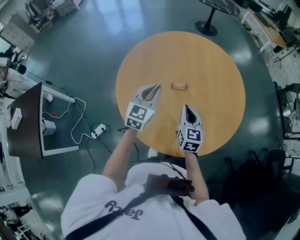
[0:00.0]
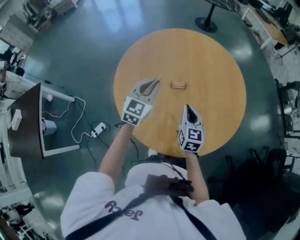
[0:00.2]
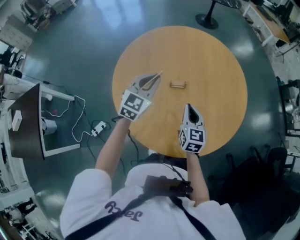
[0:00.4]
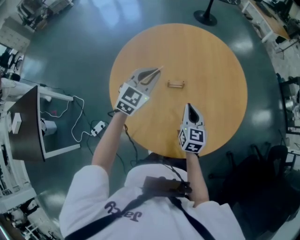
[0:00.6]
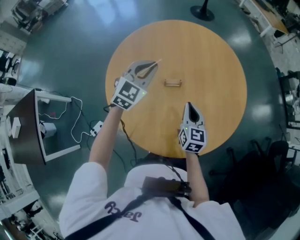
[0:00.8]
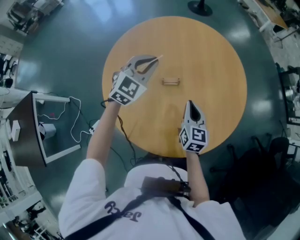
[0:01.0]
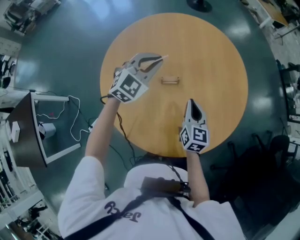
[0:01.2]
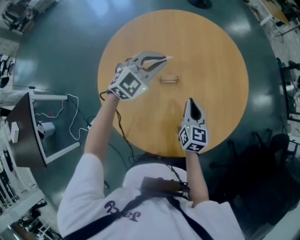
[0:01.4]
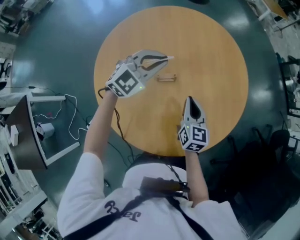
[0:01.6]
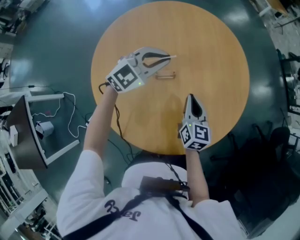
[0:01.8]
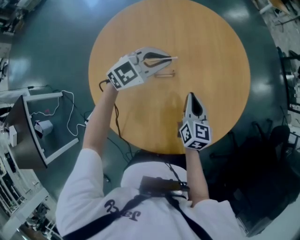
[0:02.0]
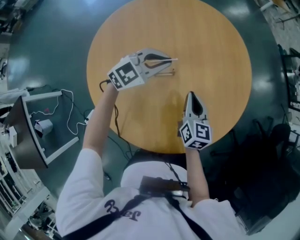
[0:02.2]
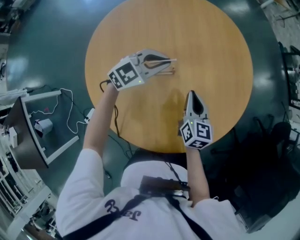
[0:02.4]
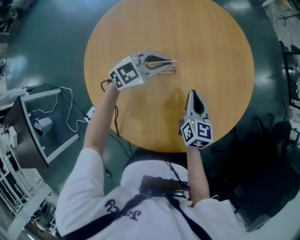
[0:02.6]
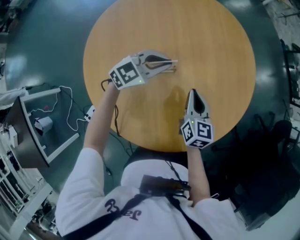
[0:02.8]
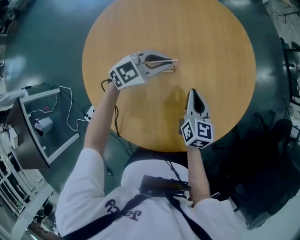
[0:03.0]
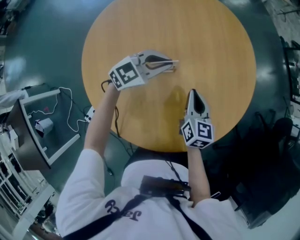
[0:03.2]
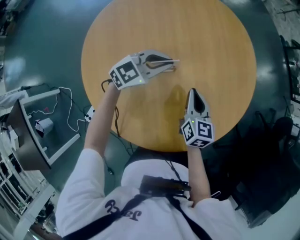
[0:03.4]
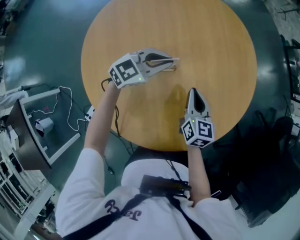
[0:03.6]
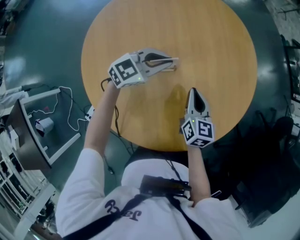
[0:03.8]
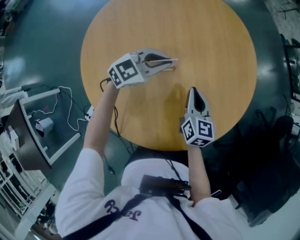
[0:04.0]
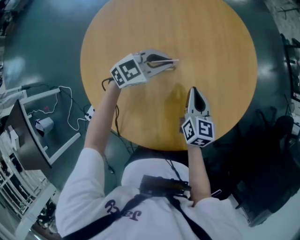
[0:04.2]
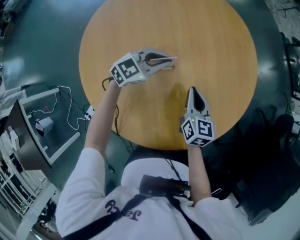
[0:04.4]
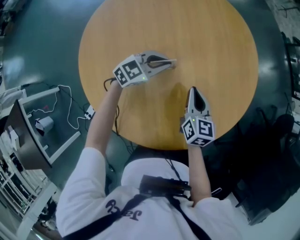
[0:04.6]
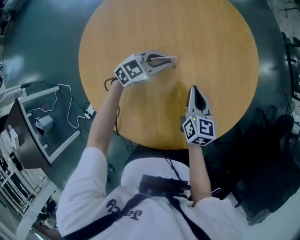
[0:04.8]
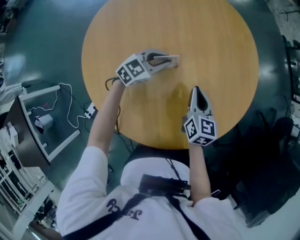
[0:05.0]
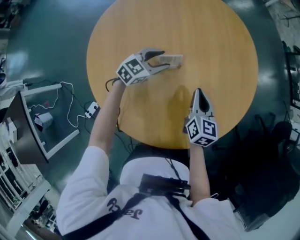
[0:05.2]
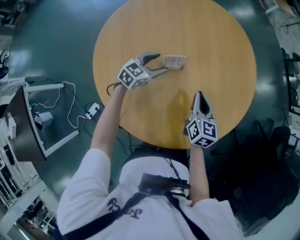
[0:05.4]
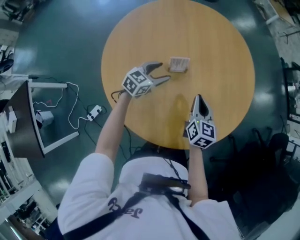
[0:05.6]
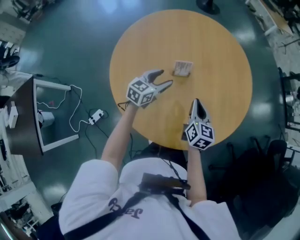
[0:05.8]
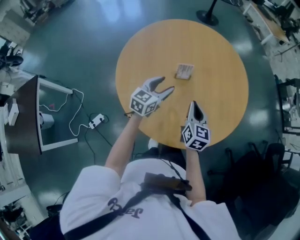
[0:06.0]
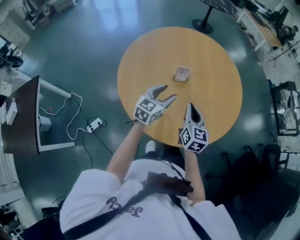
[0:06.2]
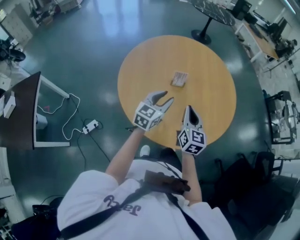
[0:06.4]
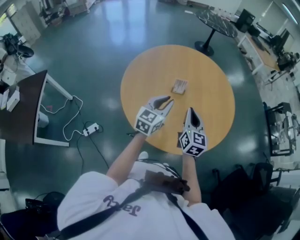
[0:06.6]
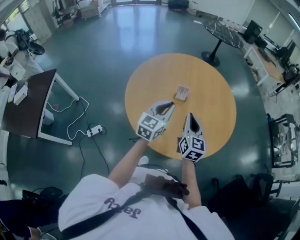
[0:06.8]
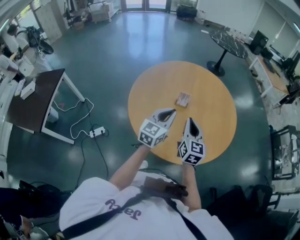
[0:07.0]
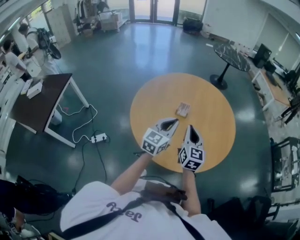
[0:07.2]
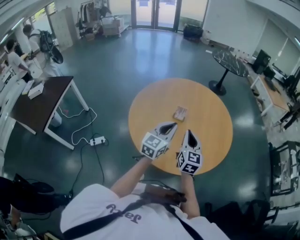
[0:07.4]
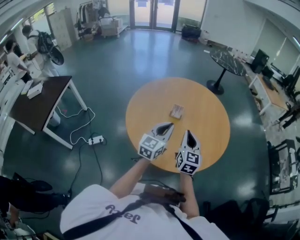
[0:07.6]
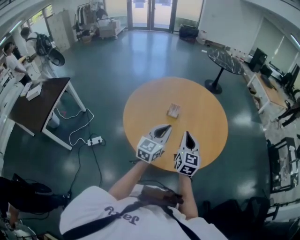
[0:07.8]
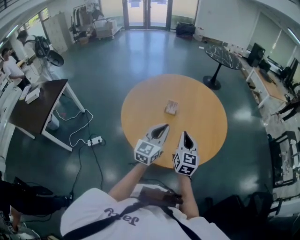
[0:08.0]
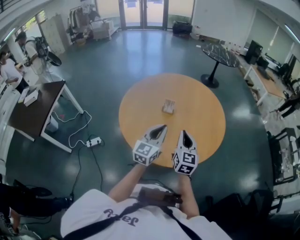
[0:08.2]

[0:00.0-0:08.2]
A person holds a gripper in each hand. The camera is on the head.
0:00.0 to 0:01.6: The right gripper goes approximately 10 cm forward and to the right. Meanwhile the left gripper goes some 15 cm forward and to the right, and rotates roughly 40 degrees.
0:01.6 to 0:03.2: The left gripper is displaced downward by some 10 cm, and turns by approximately 30 degrees.
0:03.2 to 0:05.0: The left gripper travels downward by some 10 cm.
0:05.0 to 0:06.6: The right gripper is displaced upward and backward by roughly 20 cm, and rotates some 30 degrees. The left gripper is displaced backward and upward by roughly 30 cm, changes its angle by about 50 degrees, and opens, then closes again.
0:06.6 to 0:08.2: The right gripper goes some 10 cm to the right and backward; the left gripper is displaced backward and to the right by roughly 15 cm.

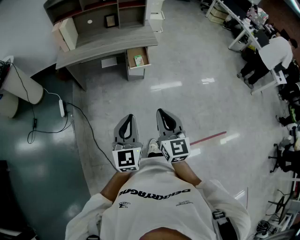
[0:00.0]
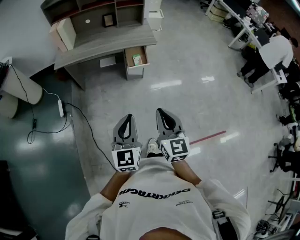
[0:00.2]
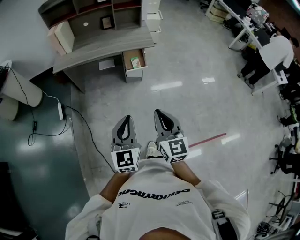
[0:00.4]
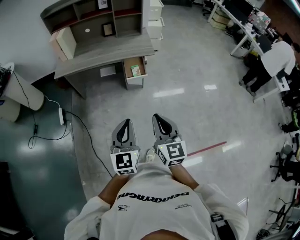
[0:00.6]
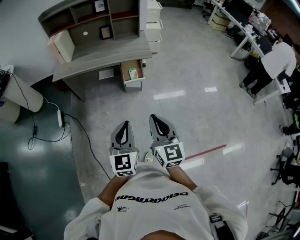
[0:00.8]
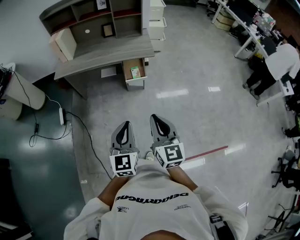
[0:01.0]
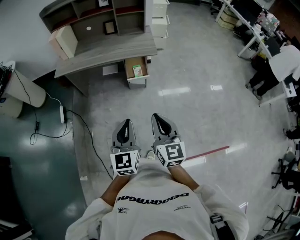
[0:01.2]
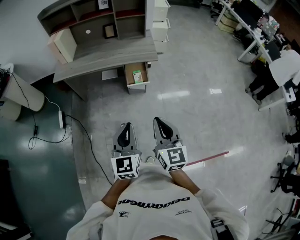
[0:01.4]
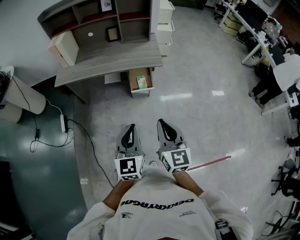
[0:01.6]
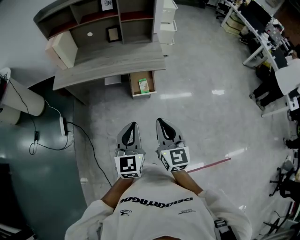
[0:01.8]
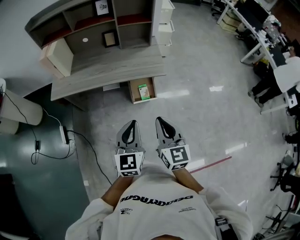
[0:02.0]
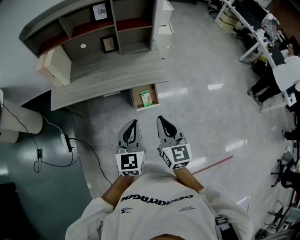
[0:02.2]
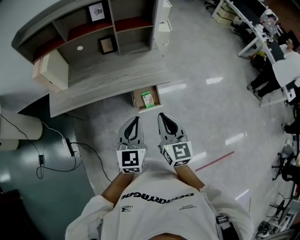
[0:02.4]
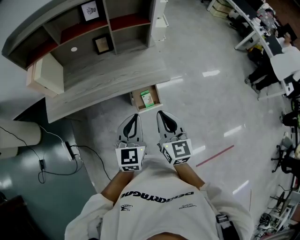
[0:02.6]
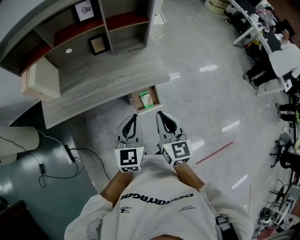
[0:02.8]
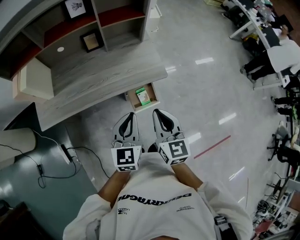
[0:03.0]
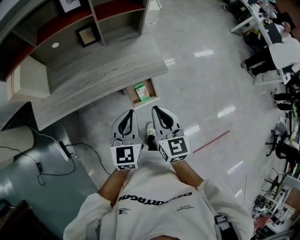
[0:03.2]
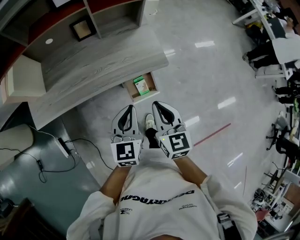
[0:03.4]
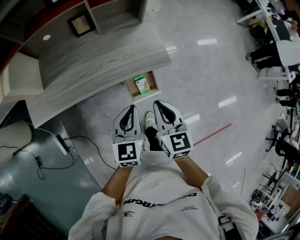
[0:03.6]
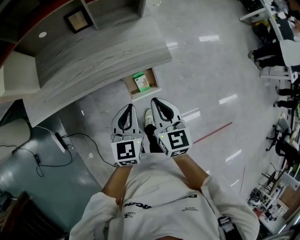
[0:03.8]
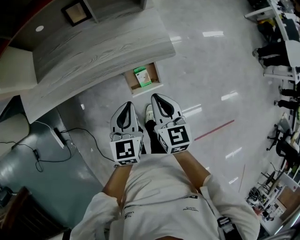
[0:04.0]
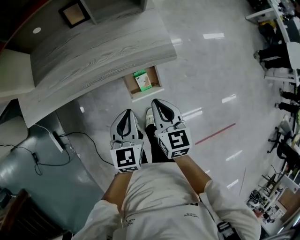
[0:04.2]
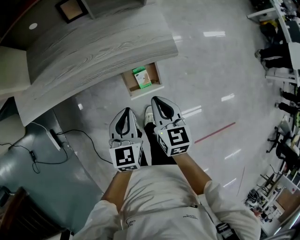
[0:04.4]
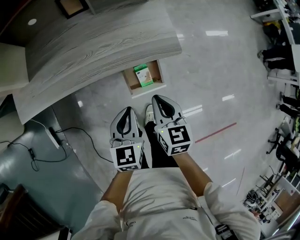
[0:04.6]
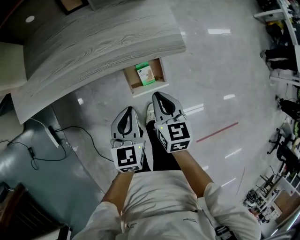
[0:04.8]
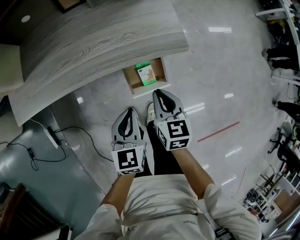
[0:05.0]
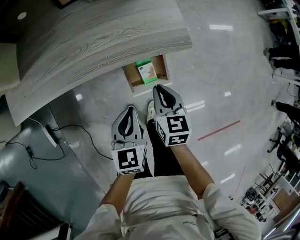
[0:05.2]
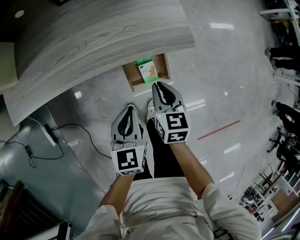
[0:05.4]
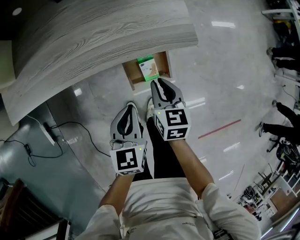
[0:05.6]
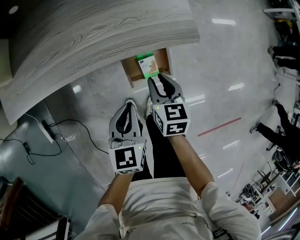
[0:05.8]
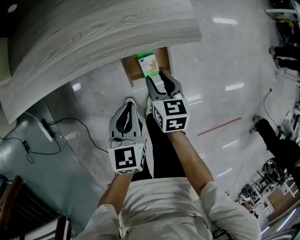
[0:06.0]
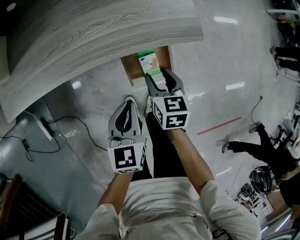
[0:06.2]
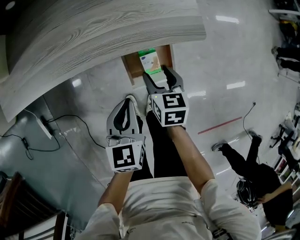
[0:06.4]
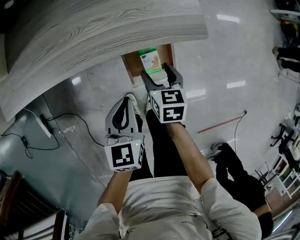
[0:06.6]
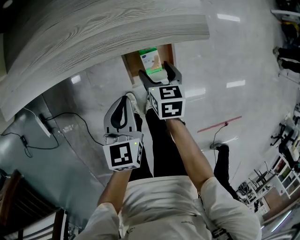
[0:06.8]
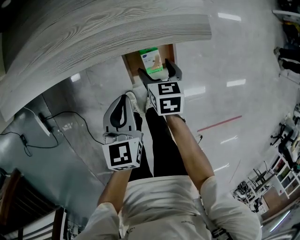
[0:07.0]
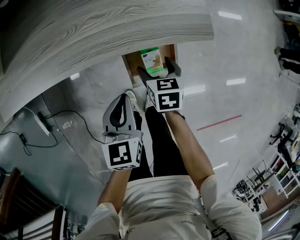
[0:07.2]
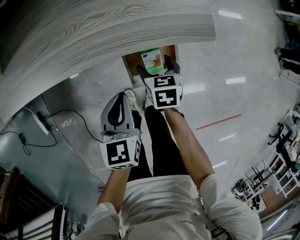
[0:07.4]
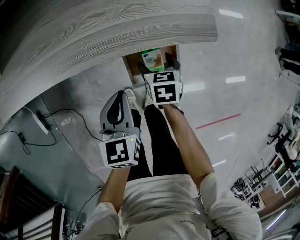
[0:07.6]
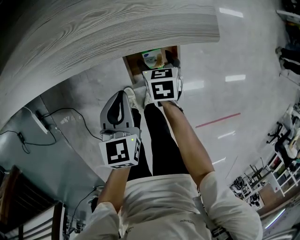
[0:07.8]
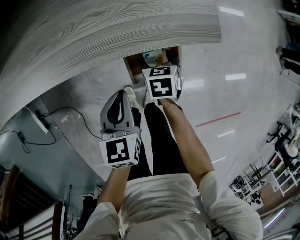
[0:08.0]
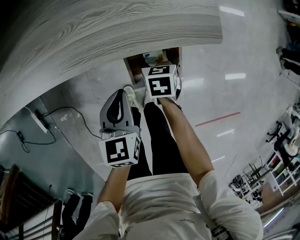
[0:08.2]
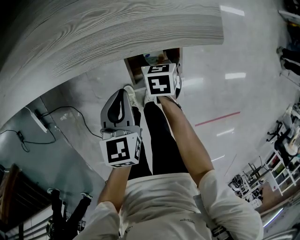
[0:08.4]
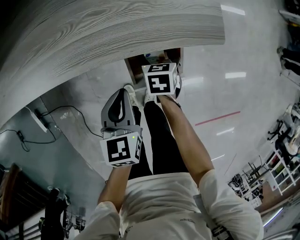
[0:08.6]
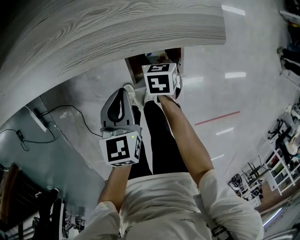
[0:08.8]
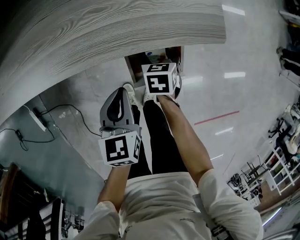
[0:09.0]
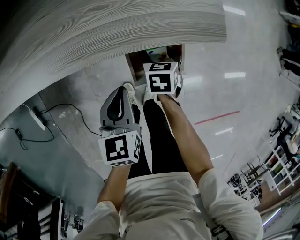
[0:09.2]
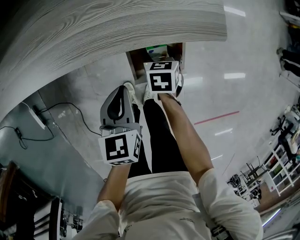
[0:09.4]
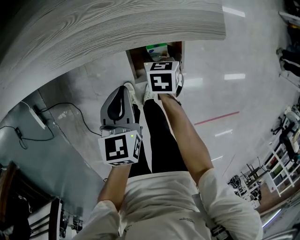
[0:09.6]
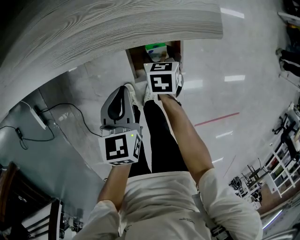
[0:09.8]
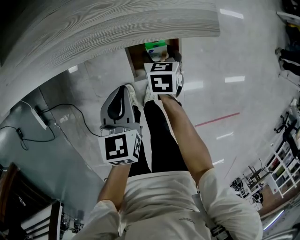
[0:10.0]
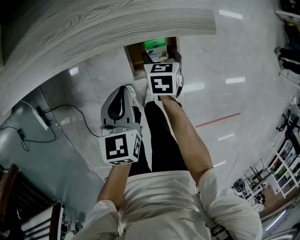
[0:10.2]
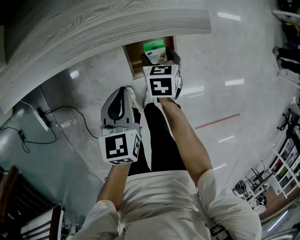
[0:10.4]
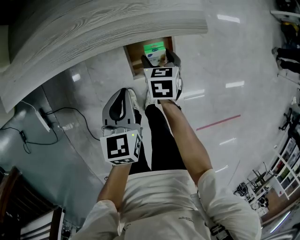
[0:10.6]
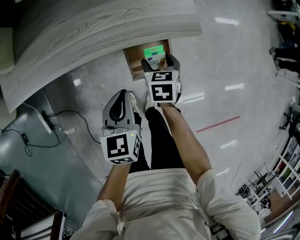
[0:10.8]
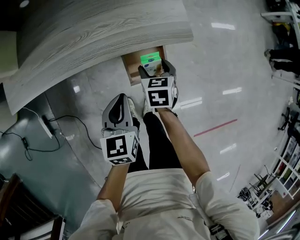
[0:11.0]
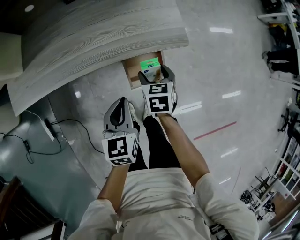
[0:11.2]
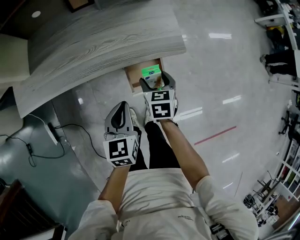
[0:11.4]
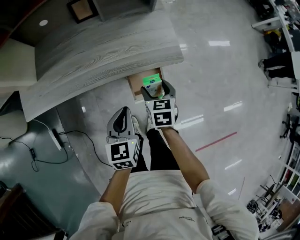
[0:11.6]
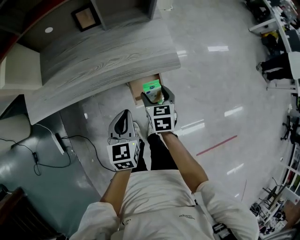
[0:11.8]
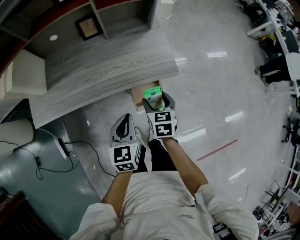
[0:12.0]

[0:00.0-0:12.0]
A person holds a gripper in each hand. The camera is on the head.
0:00.0 to 0:01.6: The two grippers go about 20 cm forward and to the right.
0:01.6 to 0:03.0: The two grippers go approximately 35 cm forward.
0:03.0 to 0:04.4: The grippers both shift downward by roughly 20 cm.
0:04.4 to 0:06.0: The left gripper travels downward by approximately 10 cm, while the right gripper is displaced downward by about 20 cm, and opens its fingers.
0:06.0 to 0:07.6: The right gripper heads downward, covering approximately 10 cm, and opens its fingers, while the left gripper shifts by approximately 5 cm.
0:07.6 to 0:09.0: The grippers stay close to where they were, moving slightly.
0:09.0 to 0:10.4: Both grippers move upward, roughly 5 cm.
0:10.4 to 0:12.0: Both grippers move upward, some 20 cm.

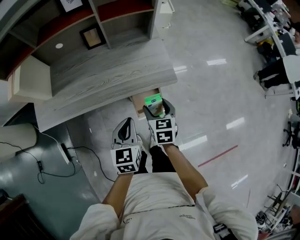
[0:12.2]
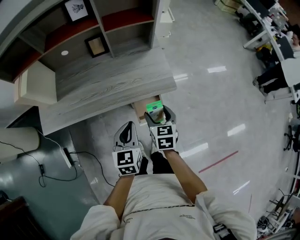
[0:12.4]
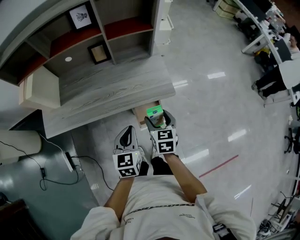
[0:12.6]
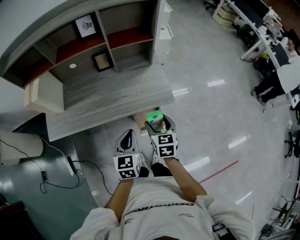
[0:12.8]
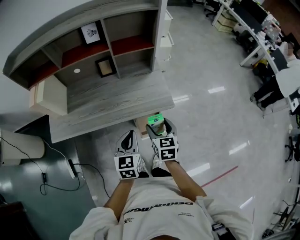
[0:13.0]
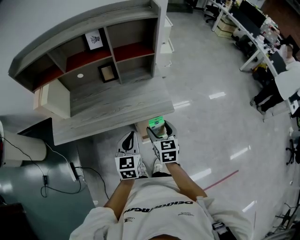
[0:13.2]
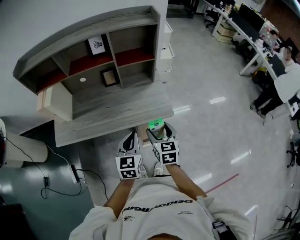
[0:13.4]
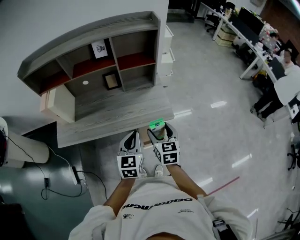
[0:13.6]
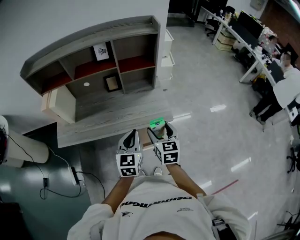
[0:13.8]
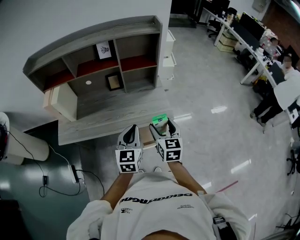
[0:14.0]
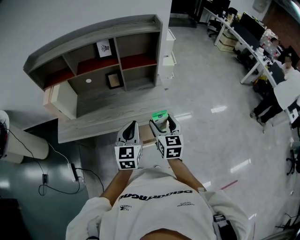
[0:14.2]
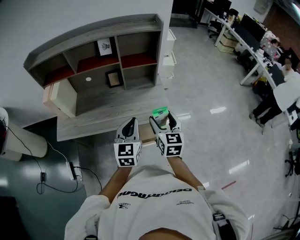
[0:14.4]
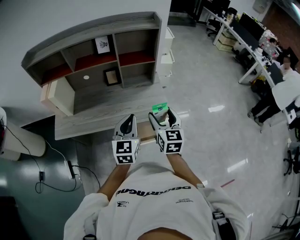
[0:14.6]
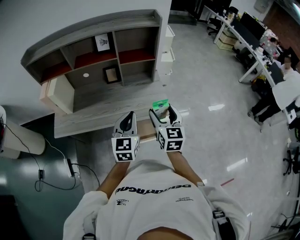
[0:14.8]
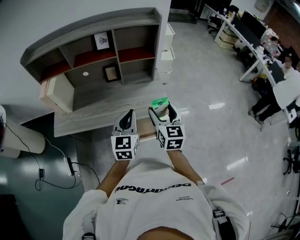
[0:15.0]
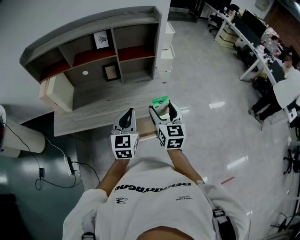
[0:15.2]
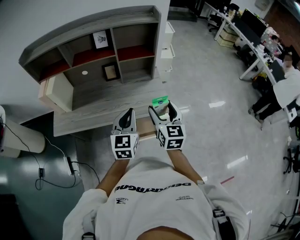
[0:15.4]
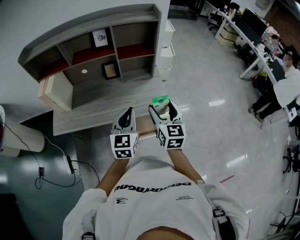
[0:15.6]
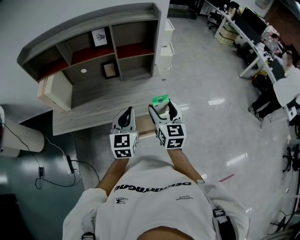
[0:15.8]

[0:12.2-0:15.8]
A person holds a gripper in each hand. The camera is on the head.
0:12.2 to 0:14.0: Both grippers travel together upward, about 20 cm. The right gripper changes its angle by approximately 20 degrees.
0:14.0 to 0:15.8: There are only small adjustments of the grippers.
